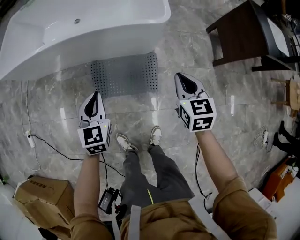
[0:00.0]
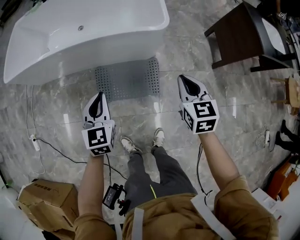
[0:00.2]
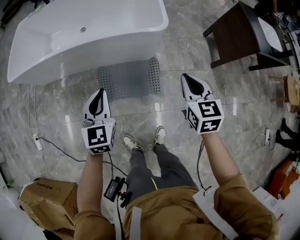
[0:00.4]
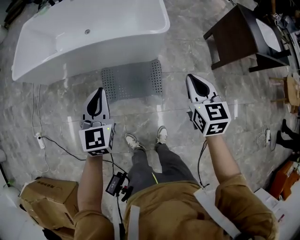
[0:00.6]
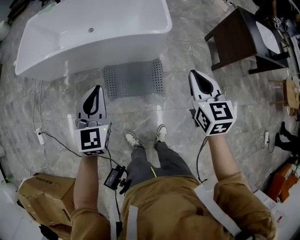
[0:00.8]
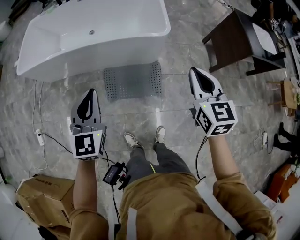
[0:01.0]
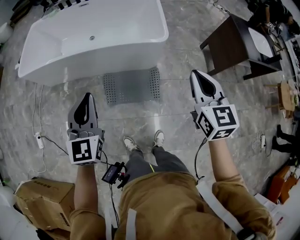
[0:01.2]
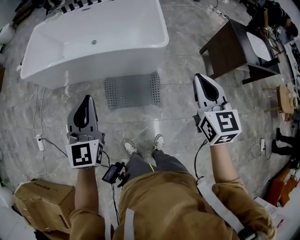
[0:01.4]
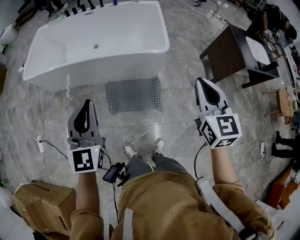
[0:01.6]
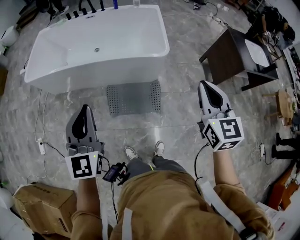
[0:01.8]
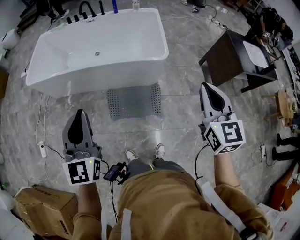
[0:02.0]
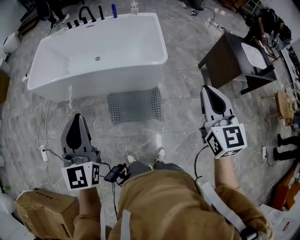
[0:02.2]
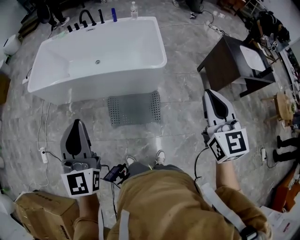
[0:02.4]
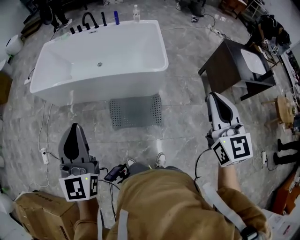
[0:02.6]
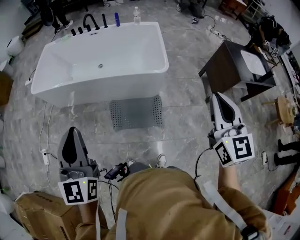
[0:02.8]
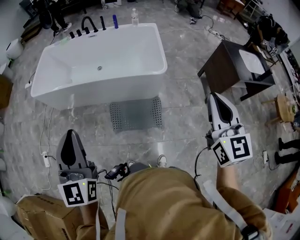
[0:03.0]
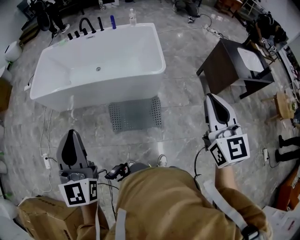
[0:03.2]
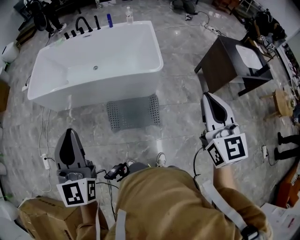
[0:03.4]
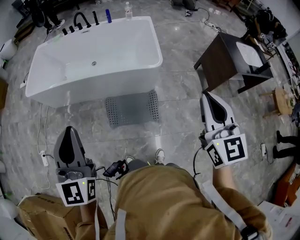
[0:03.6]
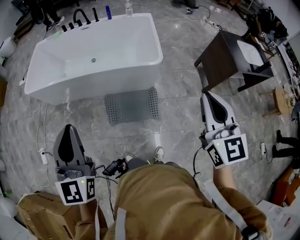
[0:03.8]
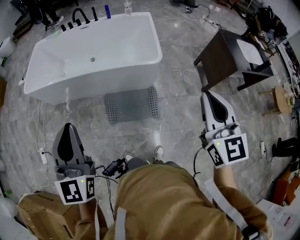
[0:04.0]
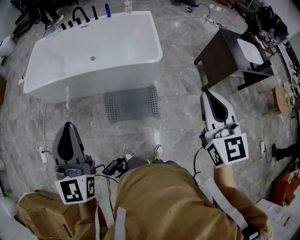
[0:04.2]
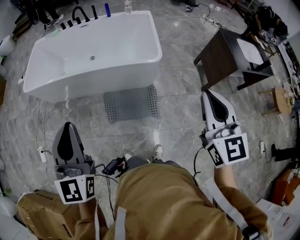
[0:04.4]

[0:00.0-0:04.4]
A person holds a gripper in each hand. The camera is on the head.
0:00.0 to 0:01.4: Both grippers move upward, approximately 30 cm. The right gripper turns by roughly 20 degrees; the left gripper changes its angle by some 20 degrees.
0:01.4 to 0:03.0: The left gripper is displaced upward and backward by roughly 15 cm; the right gripper moves upward, about 10 cm.
0:03.0 to 0:04.4: The grippers move only a little.

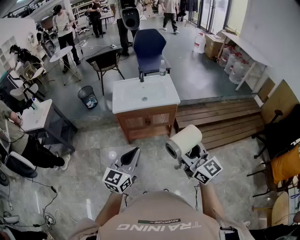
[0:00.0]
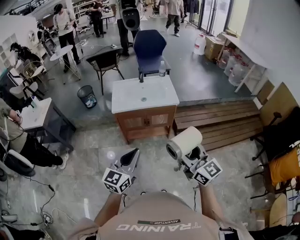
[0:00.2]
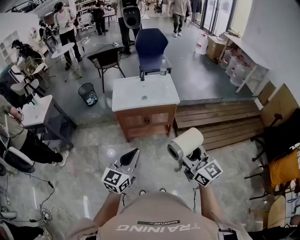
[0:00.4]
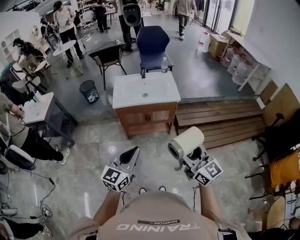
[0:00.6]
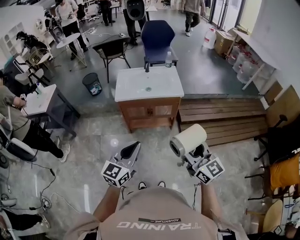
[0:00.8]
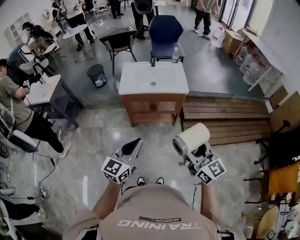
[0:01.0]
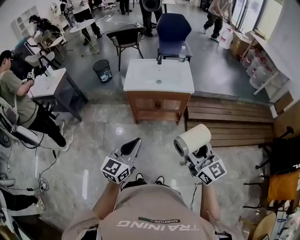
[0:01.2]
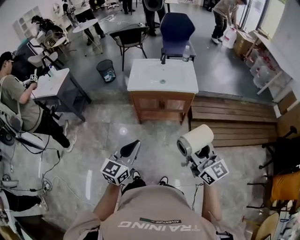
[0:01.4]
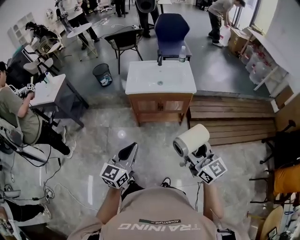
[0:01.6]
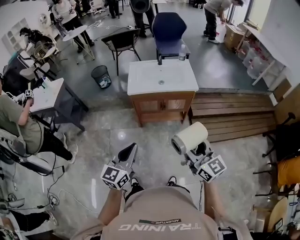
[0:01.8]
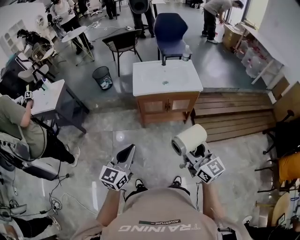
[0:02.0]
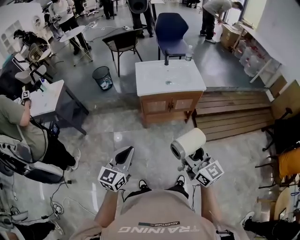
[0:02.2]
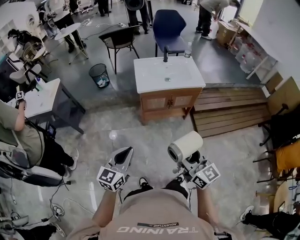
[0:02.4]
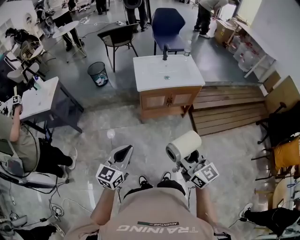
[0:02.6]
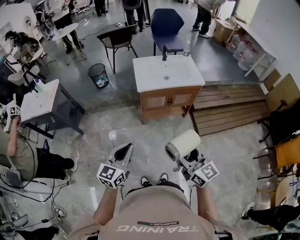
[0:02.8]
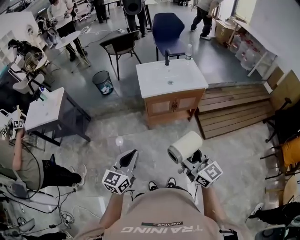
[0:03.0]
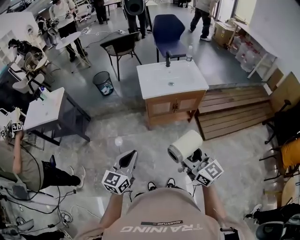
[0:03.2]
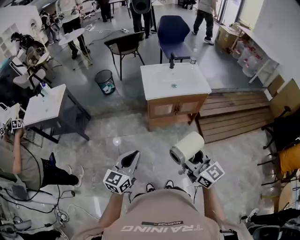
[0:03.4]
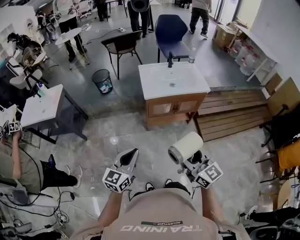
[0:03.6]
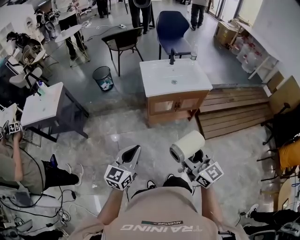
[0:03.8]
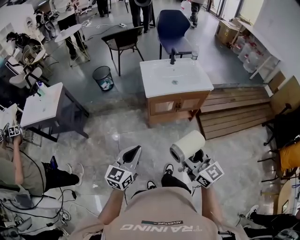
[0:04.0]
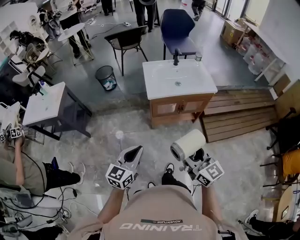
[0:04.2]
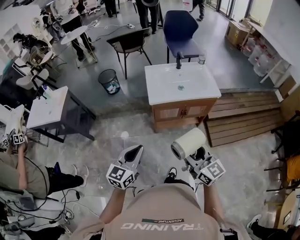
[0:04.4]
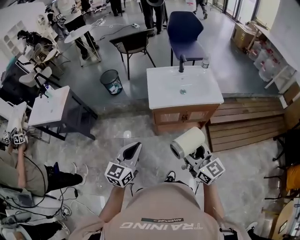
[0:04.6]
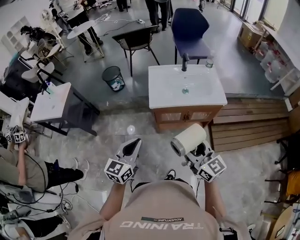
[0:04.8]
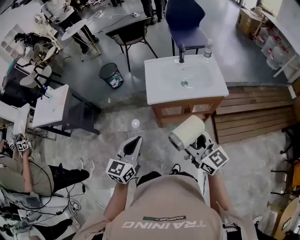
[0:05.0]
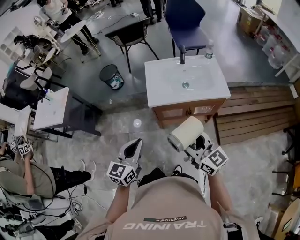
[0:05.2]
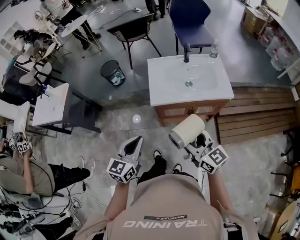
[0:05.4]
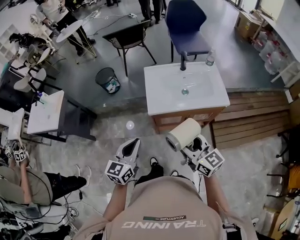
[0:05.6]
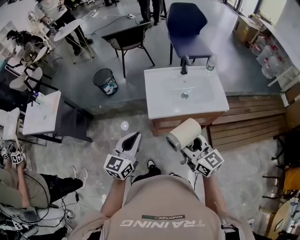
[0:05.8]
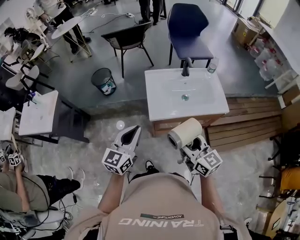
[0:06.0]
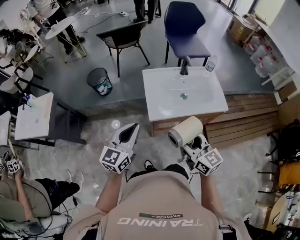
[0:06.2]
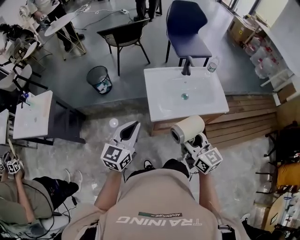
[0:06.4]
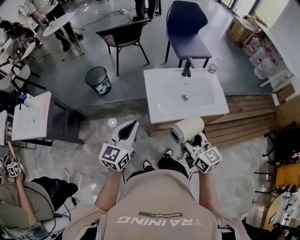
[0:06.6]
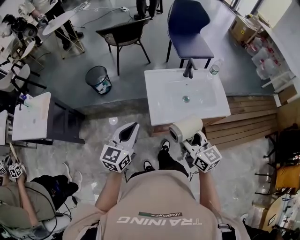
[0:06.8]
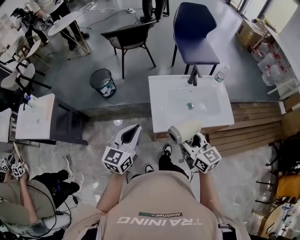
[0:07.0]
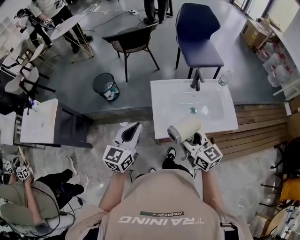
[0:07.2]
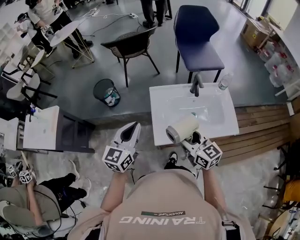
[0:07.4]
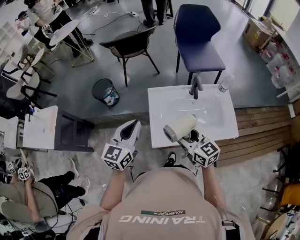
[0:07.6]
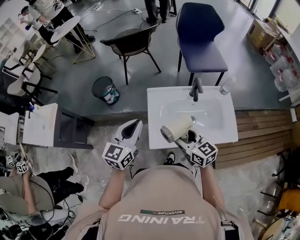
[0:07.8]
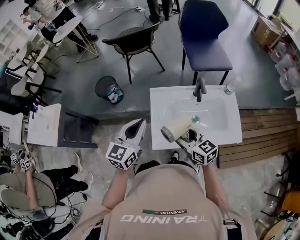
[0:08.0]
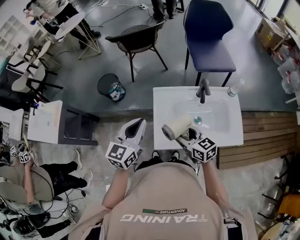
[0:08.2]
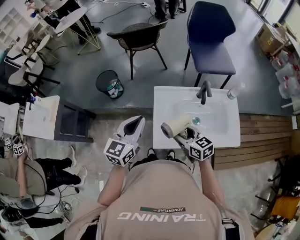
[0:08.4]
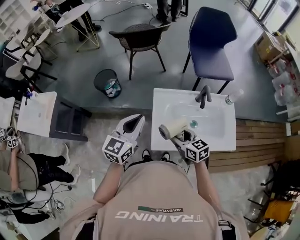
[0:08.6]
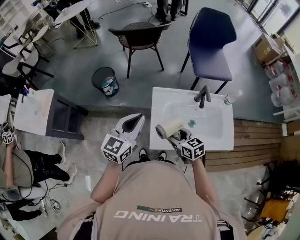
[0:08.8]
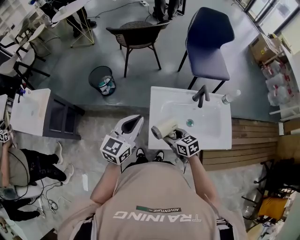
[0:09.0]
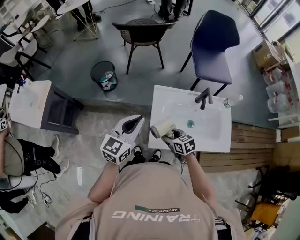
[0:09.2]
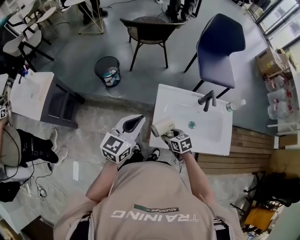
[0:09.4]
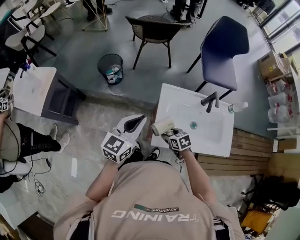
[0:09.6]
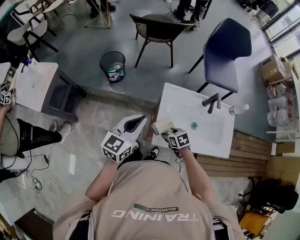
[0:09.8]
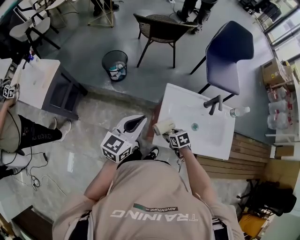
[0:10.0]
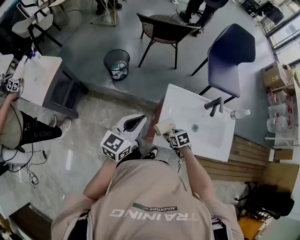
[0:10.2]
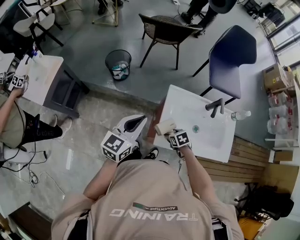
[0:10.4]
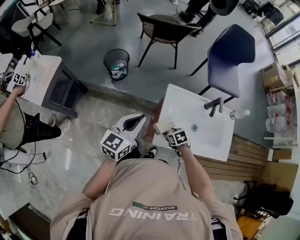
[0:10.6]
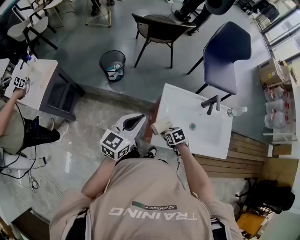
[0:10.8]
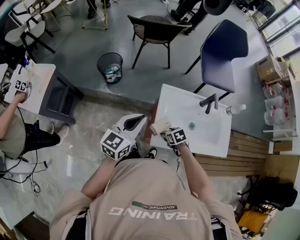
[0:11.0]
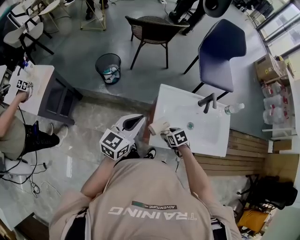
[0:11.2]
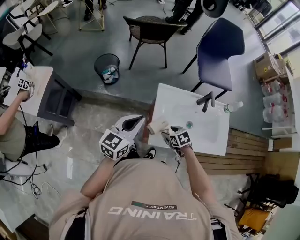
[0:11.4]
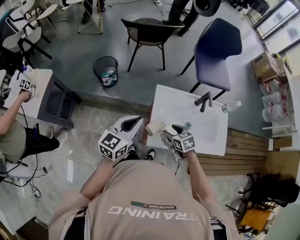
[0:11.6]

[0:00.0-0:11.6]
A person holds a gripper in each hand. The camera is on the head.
0:00.0 to 0:01.4: The left gripper moves about 5 cm, while the right gripper changes place by roughly 5 cm.
0:01.4 to 0:02.8: The grippers both shift to the left by approximately 25 cm.
0:02.8 to 0:04.4: Both grippers travel together forward, roughly 10 cm.
0:04.4 to 0:05.8: The grippers both shift forward by some 20 cm.
0:05.8 to 0:07.2: Both grippers travel together forward, roughly 20 cm.
0:07.2 to 0:08.8: The right gripper shifts some 15 cm downward and forward, and rotates approximately 30 degrees. The left gripper shifts about 10 cm forward.
0:08.8 to 0:10.2: The right gripper goes approximately 15 cm downward, and tilts its fingers some 30 degrees downward; the left gripper goes roughly 5 cm to the left.
0:10.2 to 0:11.6: The right gripper moves upward, approximately 10 cm.

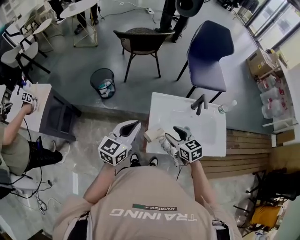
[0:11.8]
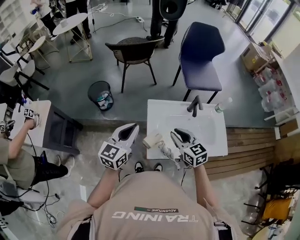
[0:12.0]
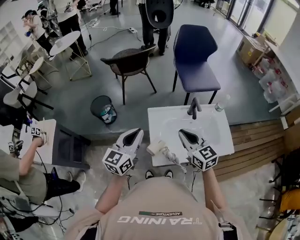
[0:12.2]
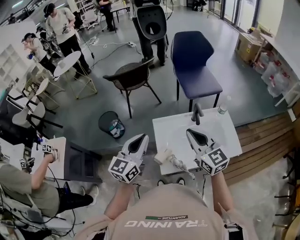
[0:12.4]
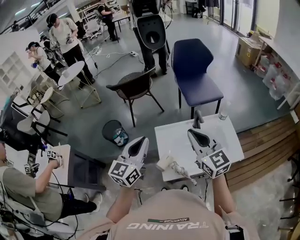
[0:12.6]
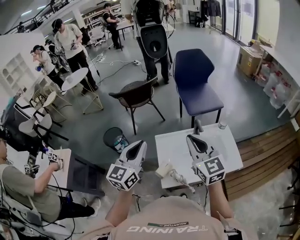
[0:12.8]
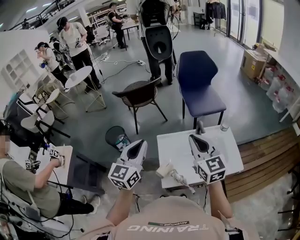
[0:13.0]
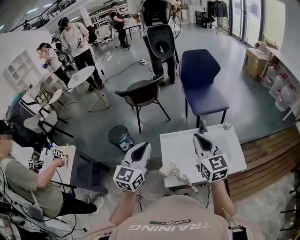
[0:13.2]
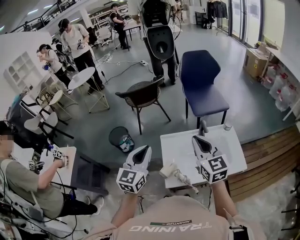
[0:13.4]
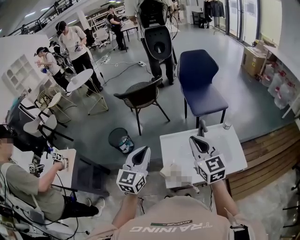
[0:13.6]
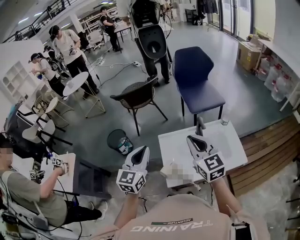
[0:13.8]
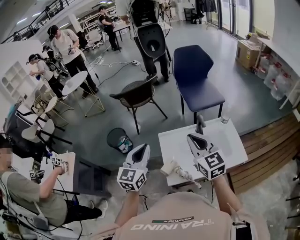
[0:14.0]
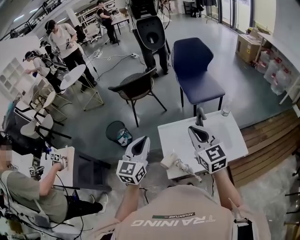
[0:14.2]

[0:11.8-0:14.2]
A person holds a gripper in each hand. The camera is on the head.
0:11.8 to 0:13.0: The right gripper travels upward by some 25 cm, changes its angle by roughly 40 degrees, and closes up, while the left gripper is displaced upward by roughly 15 cm.
0:13.0 to 0:14.2: The grippers make only small movements.

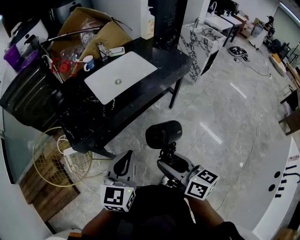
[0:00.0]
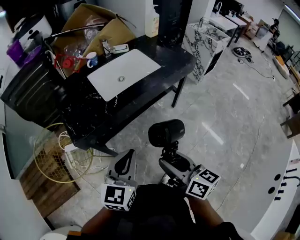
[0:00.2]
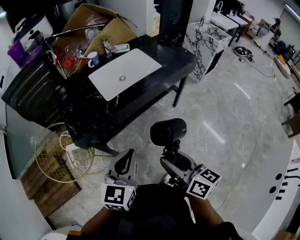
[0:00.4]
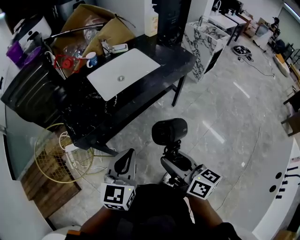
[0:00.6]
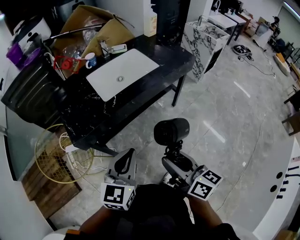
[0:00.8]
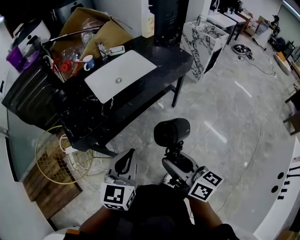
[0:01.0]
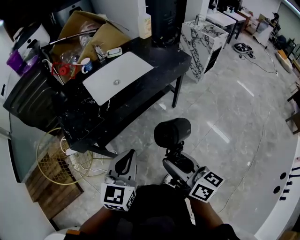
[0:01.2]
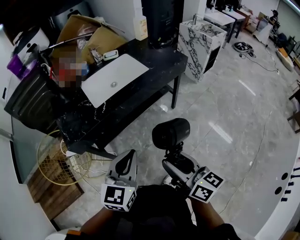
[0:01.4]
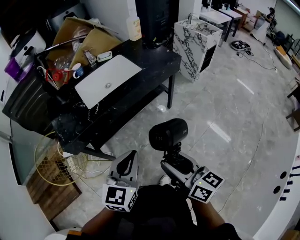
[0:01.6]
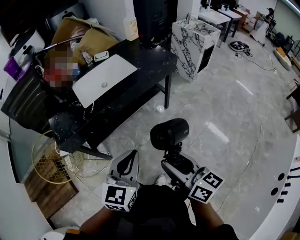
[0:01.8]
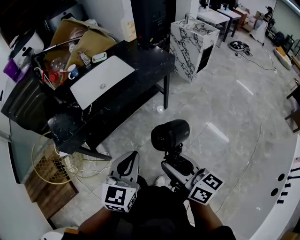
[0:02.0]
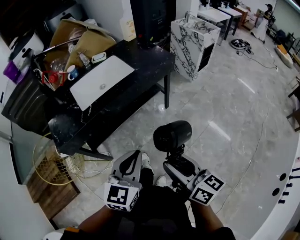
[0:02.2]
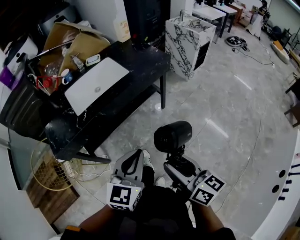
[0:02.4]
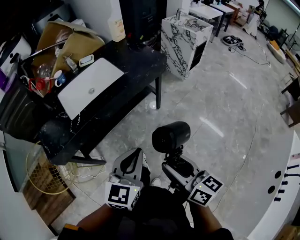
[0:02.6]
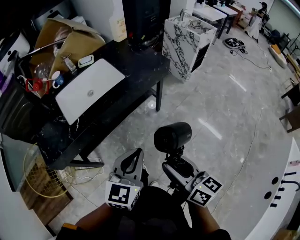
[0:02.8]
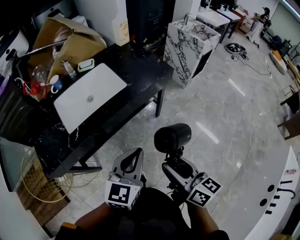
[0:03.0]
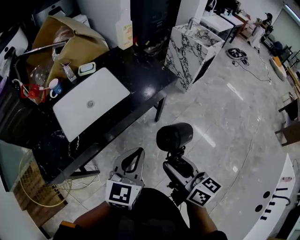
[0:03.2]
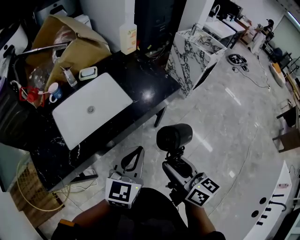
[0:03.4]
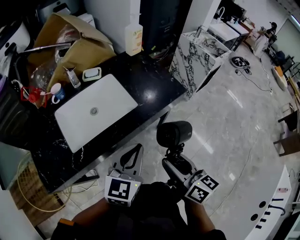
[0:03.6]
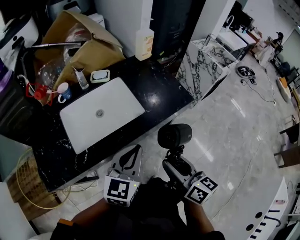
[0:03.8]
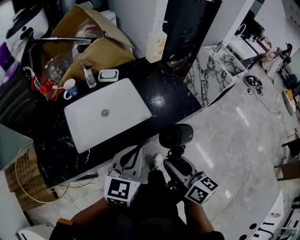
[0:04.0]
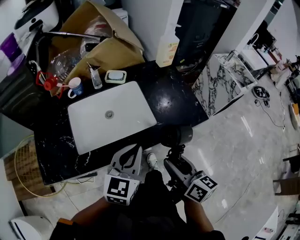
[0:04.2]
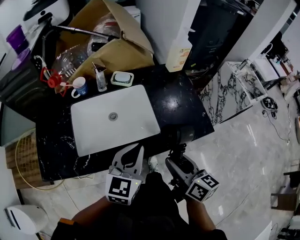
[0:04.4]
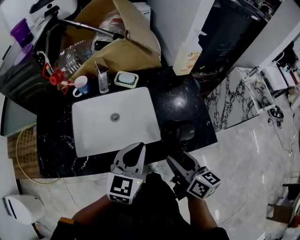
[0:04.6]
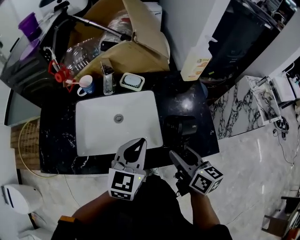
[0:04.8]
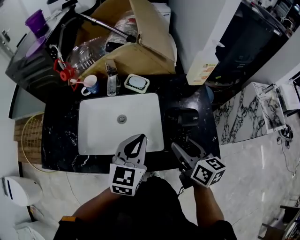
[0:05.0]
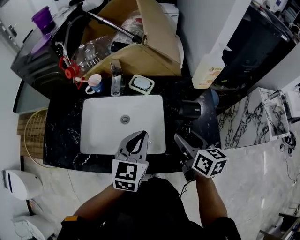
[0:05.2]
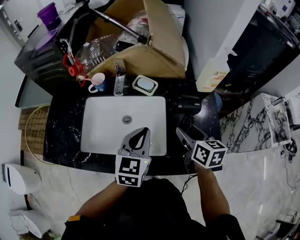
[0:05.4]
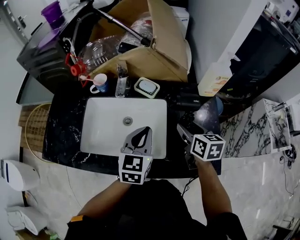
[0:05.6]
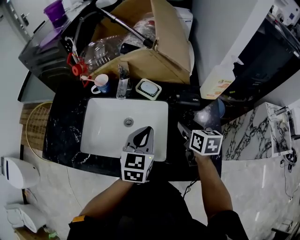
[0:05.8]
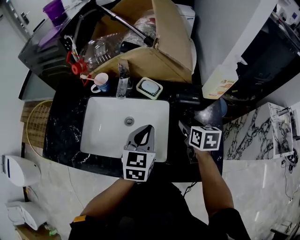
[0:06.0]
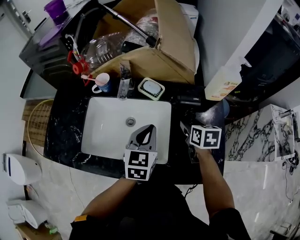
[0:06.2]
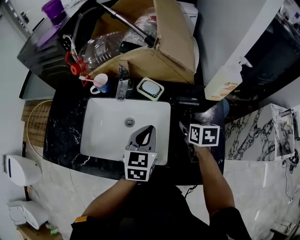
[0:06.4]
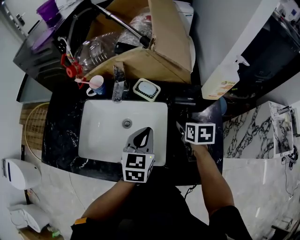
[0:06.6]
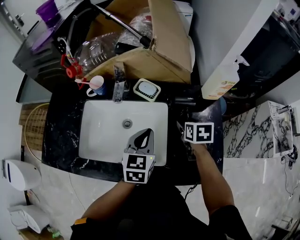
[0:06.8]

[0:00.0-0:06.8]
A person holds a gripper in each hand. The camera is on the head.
0:00.0 to 0:01.4: Both grippers travel together to the right, some 10 cm.
0:01.4 to 0:02.8: Both grippers move to the right and forward, approximately 15 cm.
0:02.8 to 0:04.0: Both grippers travel together forward, some 25 cm.
0:04.0 to 0:05.4: The left gripper shifts by some 25 cm, and changes its angle by approximately 30 degrees; the right gripper ends up some 35 cm from where it was, and rotates roughly 30 degrees.
0:05.4 to 0:06.8: The right gripper heads forward and downward, covering some 15 cm, and rotates about 30 degrees; the left gripper goes some 5 cm downward and forward.
